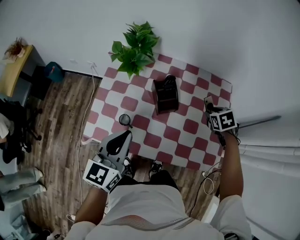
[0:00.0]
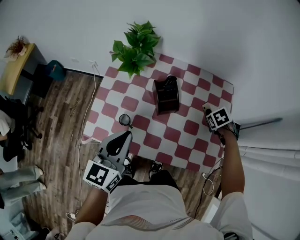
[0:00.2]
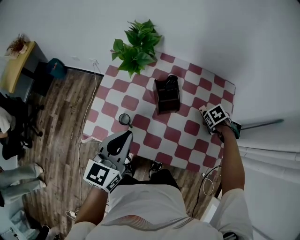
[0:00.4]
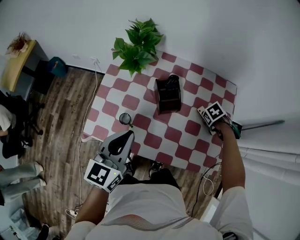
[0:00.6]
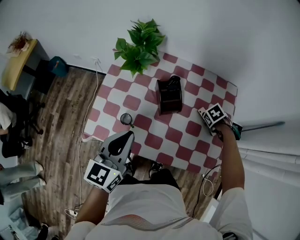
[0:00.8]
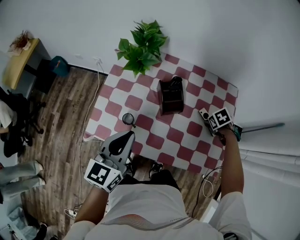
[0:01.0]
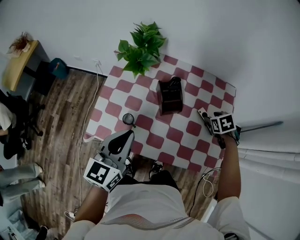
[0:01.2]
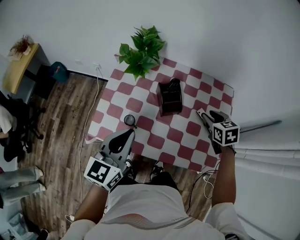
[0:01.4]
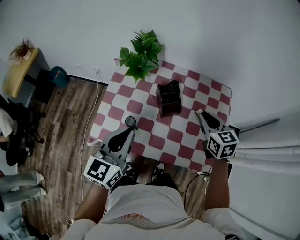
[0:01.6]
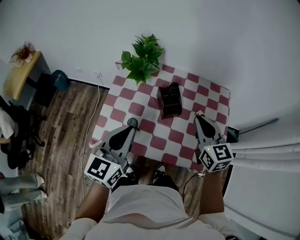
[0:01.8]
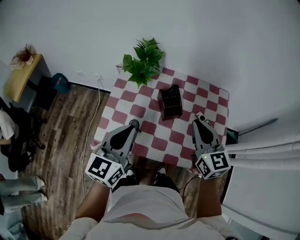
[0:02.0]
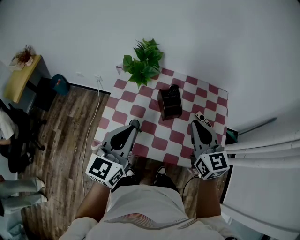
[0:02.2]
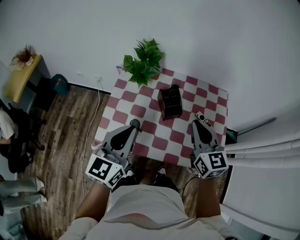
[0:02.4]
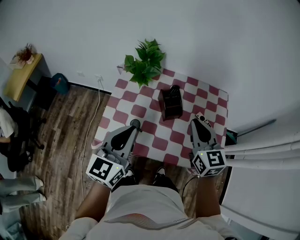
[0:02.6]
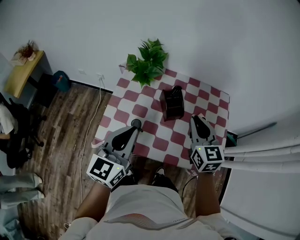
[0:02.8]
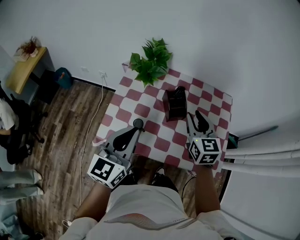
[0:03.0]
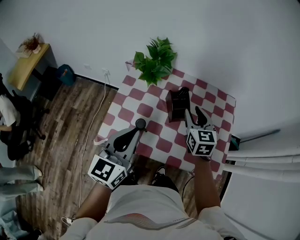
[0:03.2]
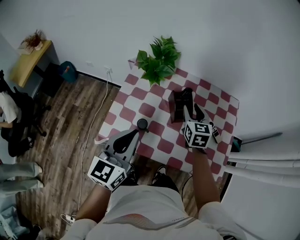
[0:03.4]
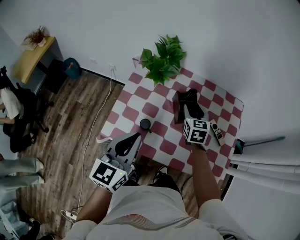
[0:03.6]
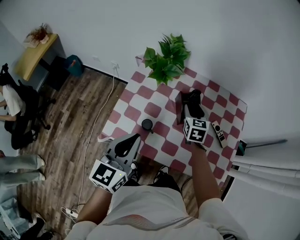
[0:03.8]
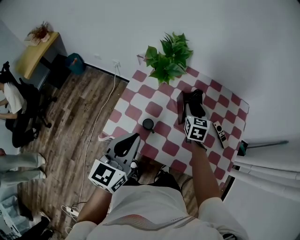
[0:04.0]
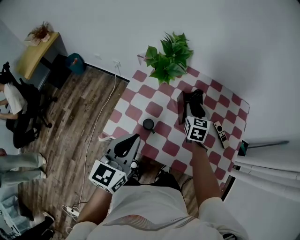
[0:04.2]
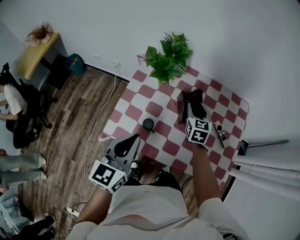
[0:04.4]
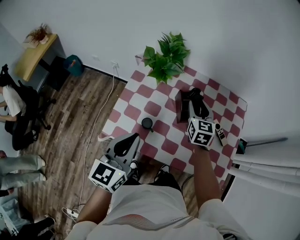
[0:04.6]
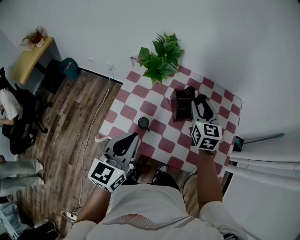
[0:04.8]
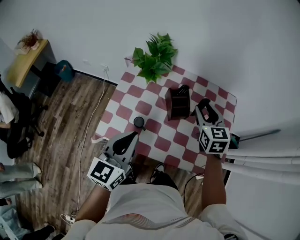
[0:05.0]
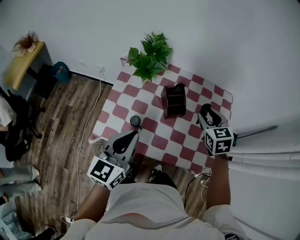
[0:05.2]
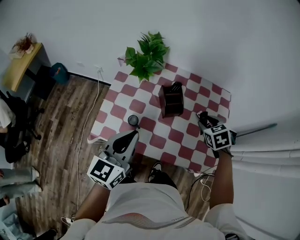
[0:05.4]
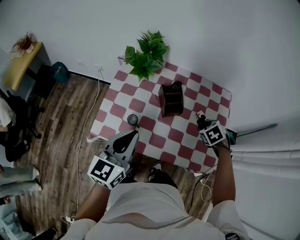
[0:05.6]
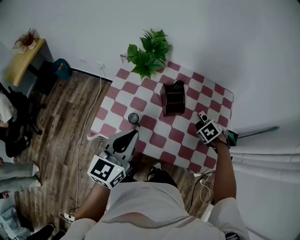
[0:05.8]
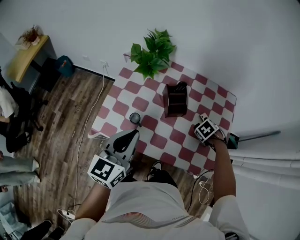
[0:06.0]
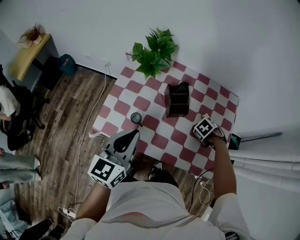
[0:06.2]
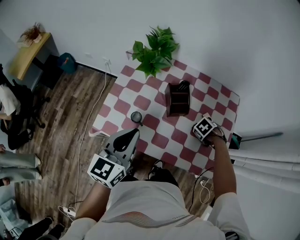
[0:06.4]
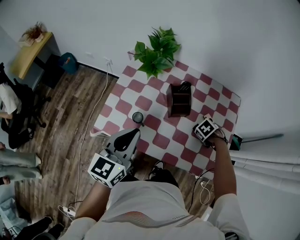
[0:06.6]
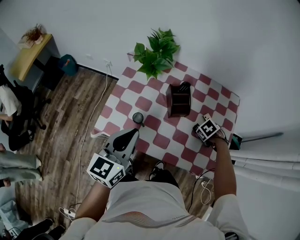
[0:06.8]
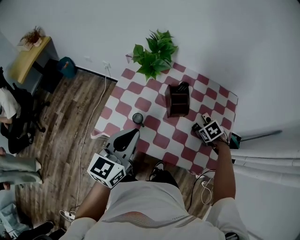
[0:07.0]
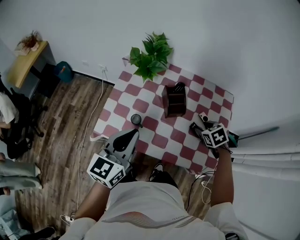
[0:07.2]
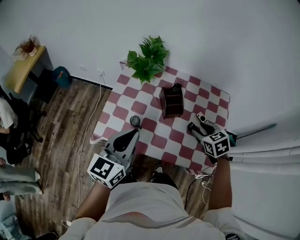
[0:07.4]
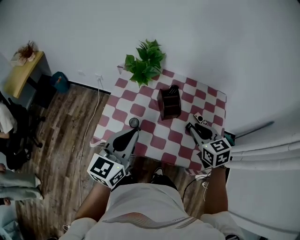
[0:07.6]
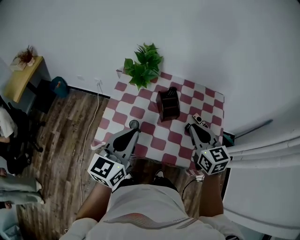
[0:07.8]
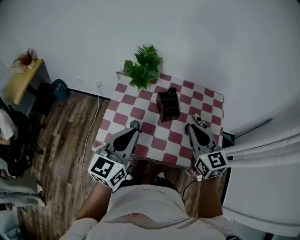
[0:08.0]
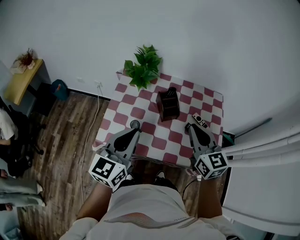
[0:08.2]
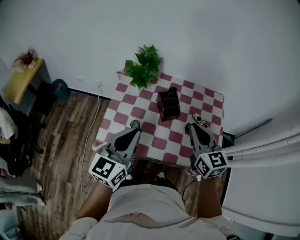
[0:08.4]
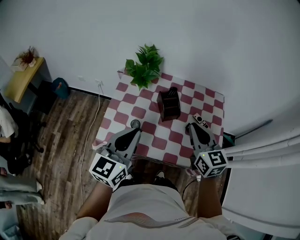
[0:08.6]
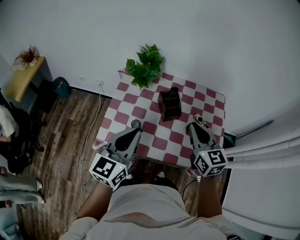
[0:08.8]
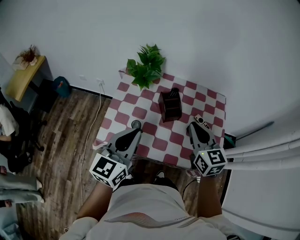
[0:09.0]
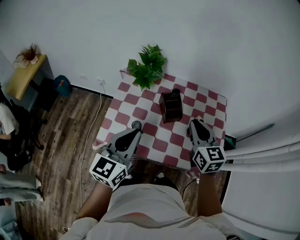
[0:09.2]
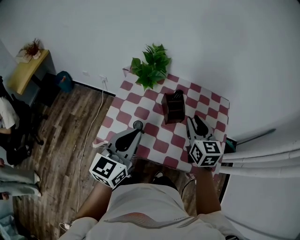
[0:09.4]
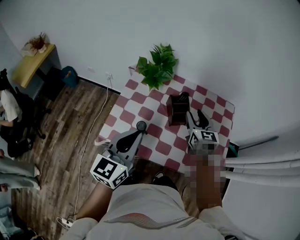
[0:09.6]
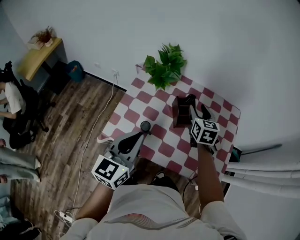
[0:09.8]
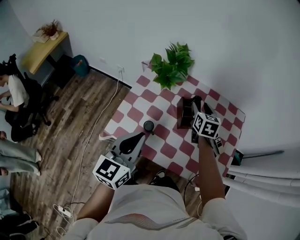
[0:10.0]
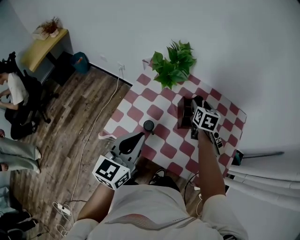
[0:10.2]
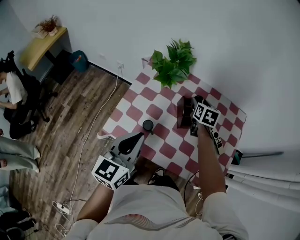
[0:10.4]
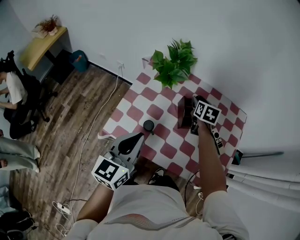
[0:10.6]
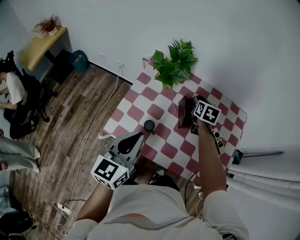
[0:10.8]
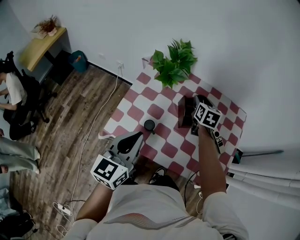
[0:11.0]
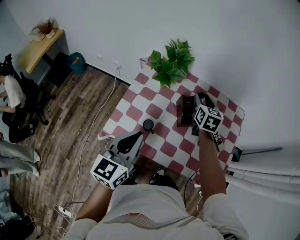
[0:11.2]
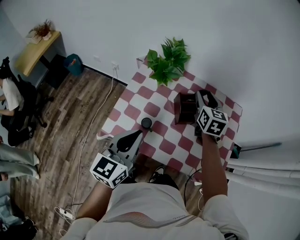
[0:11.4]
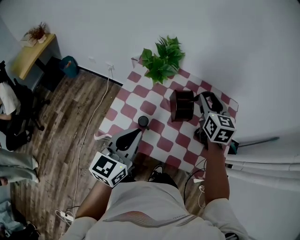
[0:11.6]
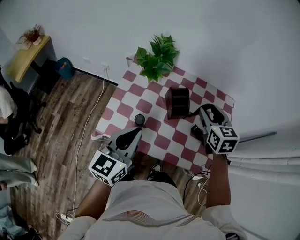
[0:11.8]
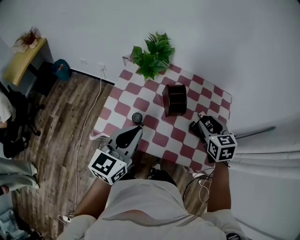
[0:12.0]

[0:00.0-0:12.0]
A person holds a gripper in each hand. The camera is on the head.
0:00.0 to 0:01.6: The right gripper ends up approximately 15 cm from where it was, tilts its fingers roughly 30 degrees upward, and closes.
0:01.6 to 0:03.0: The right gripper is displaced to the left by about 10 cm.
0:03.0 to 0:04.4: The right gripper shifts approximately 15 cm downward and forward. Meanwhile the left gripper moves some 5 cm.
0:04.4 to 0:06.0: The right gripper moves about 25 cm, and points its fingers about 60 degrees further downward.
0:06.0 to 0:07.6: The right gripper travels upward by about 20 cm, and angles its fingers upward, by approximately 50 degrees.
0:07.6 to 0:09.0: The right gripper goes roughly 5 cm upward, and turns by roughly 20 degrees.
0:09.0 to 0:10.4: The left gripper moves some 5 cm. Meanwhile the right gripper moves forward and downward, about 30 cm, rotates approximately 30 degrees, and opens its fingers.
0:10.4 to 0:12.0: The right gripper shifts roughly 20 cm backward, to the right and upward.

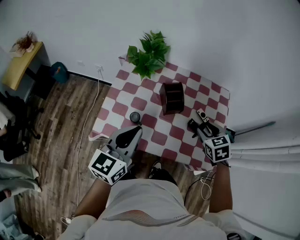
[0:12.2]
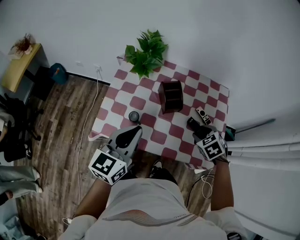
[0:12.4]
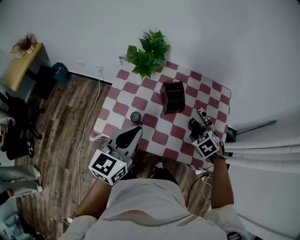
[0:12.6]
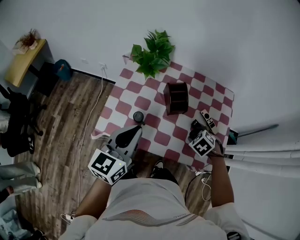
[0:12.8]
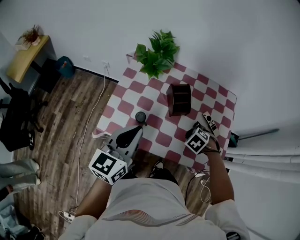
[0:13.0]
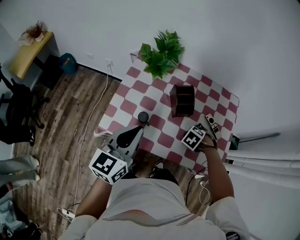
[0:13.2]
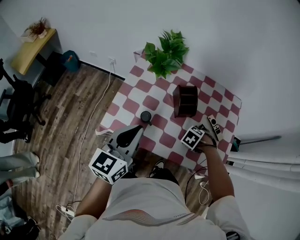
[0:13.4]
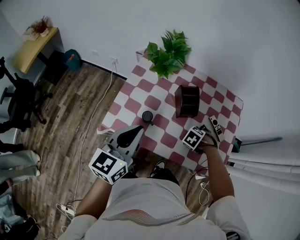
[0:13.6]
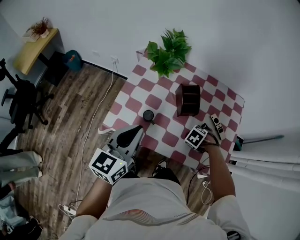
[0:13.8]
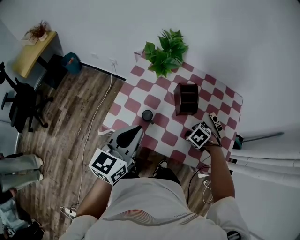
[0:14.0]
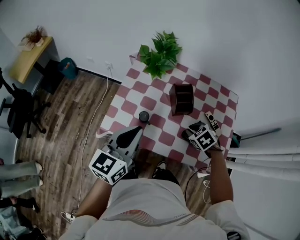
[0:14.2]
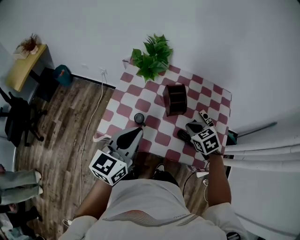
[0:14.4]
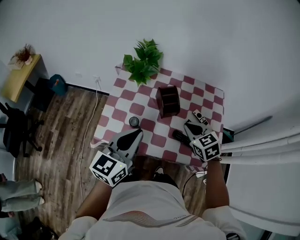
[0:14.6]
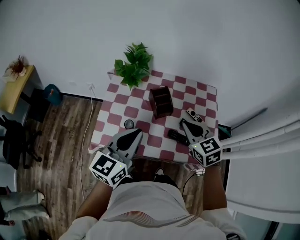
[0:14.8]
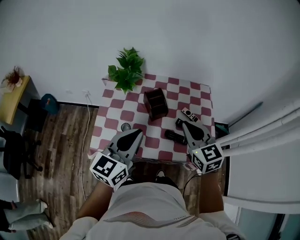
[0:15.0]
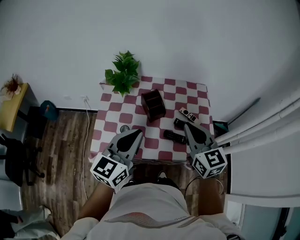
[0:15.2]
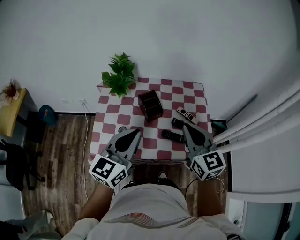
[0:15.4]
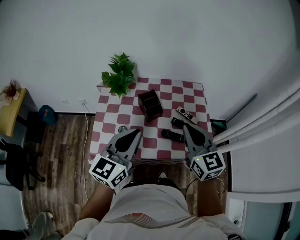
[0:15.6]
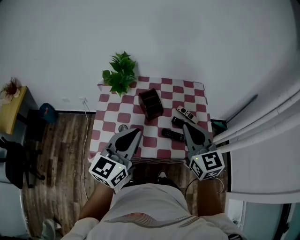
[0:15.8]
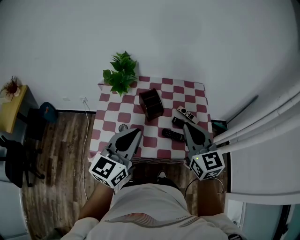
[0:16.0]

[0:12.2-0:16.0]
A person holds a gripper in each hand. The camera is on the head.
0:12.2 to 0:13.4: The right gripper heads downward, covering some 15 cm, and tips its fingers downward by roughly 40 degrees.
0:13.4 to 0:14.8: The right gripper heads upward, covering about 25 cm, points its fingers approximately 60 degrees further upward, and closes. Meanwhile the left gripper ends up about 10 cm from where it was.
0:14.8 to 0:16.0: The right gripper heads upward and backward, covering approximately 10 cm, and turns by approximately 20 degrees.

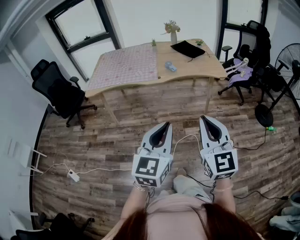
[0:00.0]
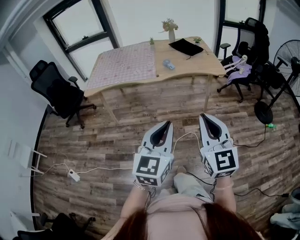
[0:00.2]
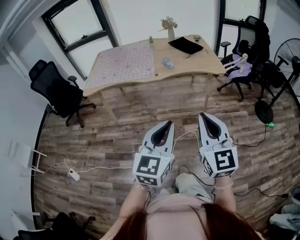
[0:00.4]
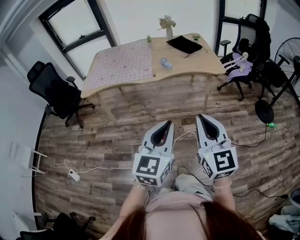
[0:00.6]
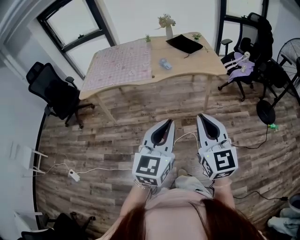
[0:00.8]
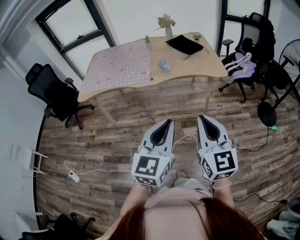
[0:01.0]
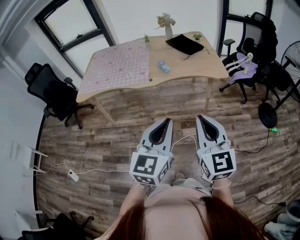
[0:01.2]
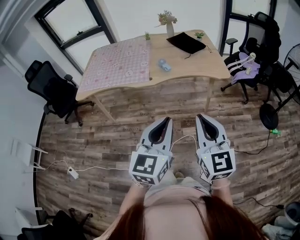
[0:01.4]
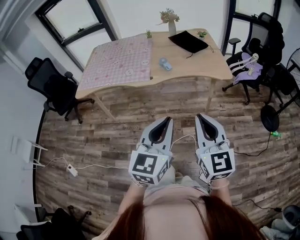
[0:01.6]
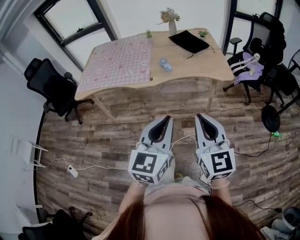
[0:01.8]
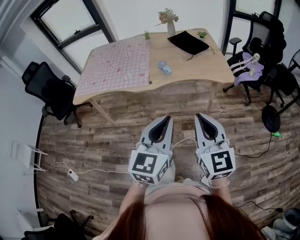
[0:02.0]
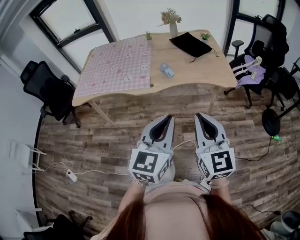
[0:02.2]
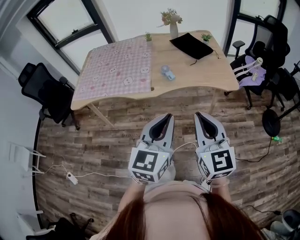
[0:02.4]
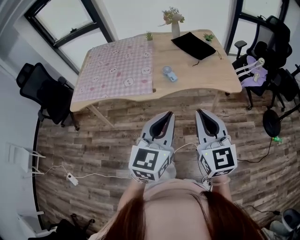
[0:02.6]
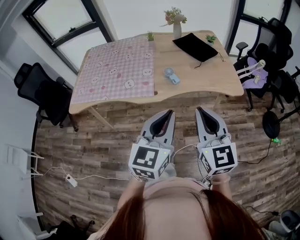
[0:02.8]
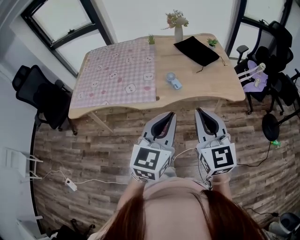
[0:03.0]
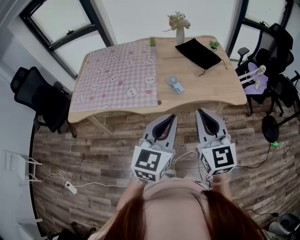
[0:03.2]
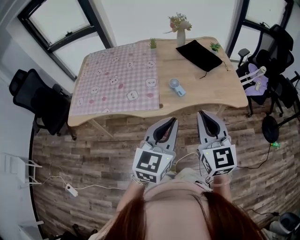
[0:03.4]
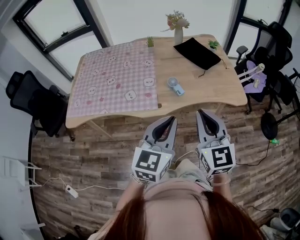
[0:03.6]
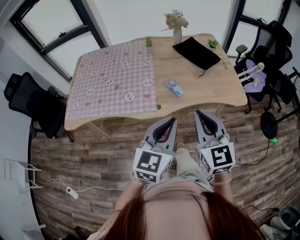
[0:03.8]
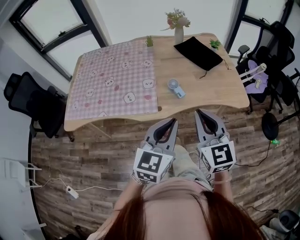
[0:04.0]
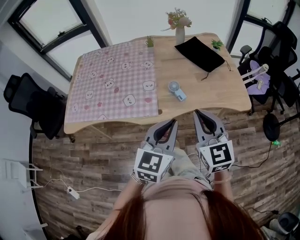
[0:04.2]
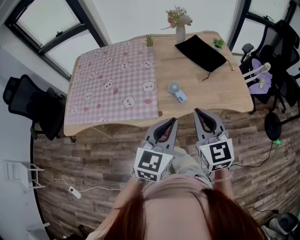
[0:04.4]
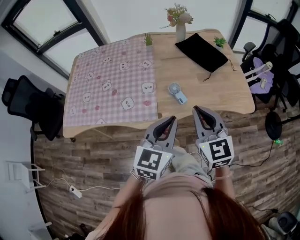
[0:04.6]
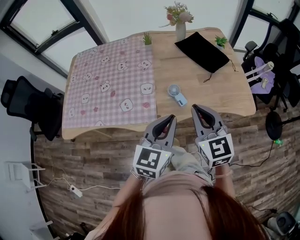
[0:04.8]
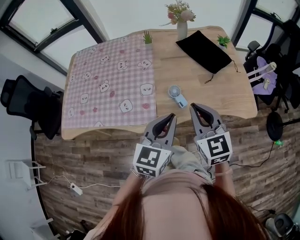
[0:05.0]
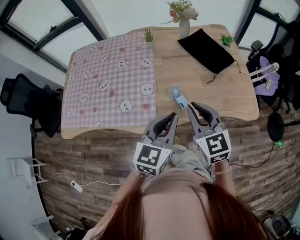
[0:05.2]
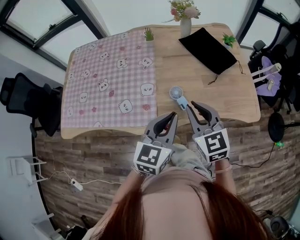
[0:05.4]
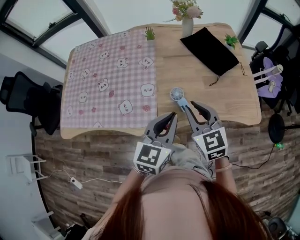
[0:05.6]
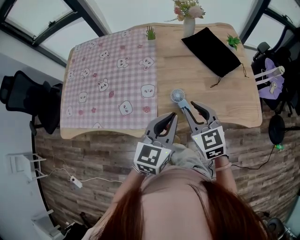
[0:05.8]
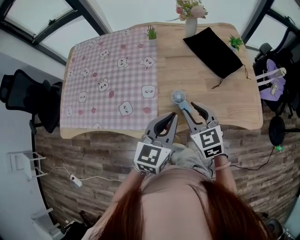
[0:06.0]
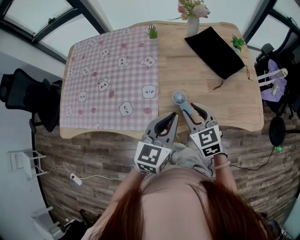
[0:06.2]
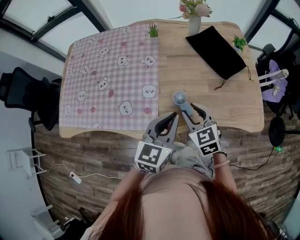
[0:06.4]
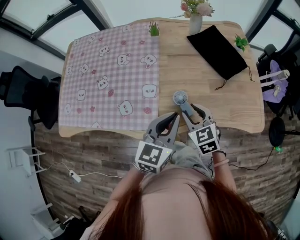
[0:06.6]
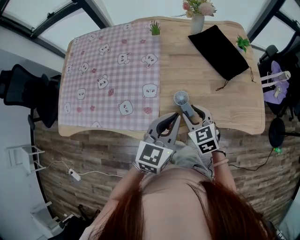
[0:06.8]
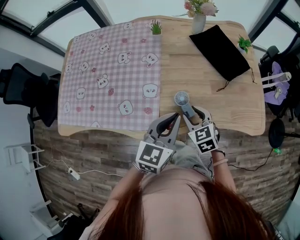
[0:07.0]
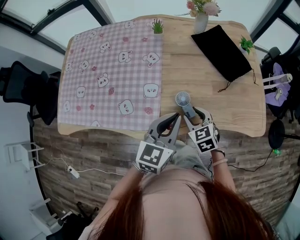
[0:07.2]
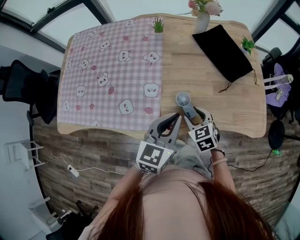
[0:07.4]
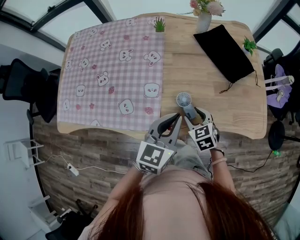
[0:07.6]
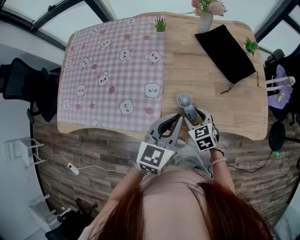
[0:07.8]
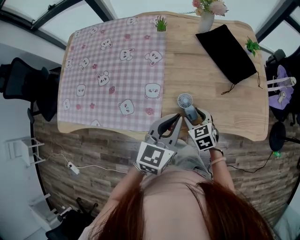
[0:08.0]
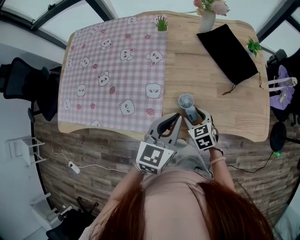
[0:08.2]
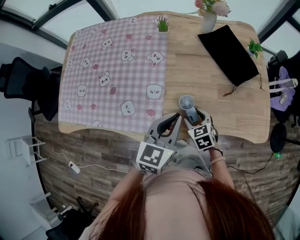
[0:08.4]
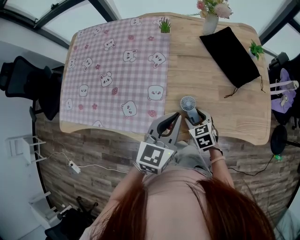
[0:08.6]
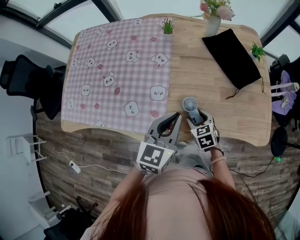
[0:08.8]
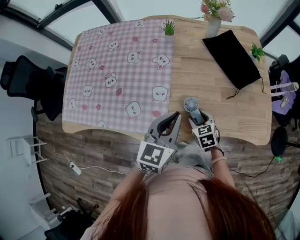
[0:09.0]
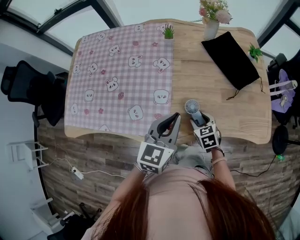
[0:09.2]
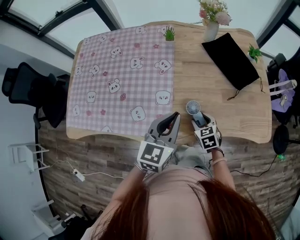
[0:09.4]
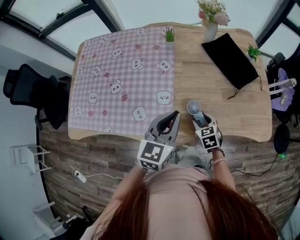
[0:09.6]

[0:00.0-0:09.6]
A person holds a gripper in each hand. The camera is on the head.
0:00.0 to 0:01.6: The grippers both shift forward and to the right by about 20 cm.
0:01.6 to 0:03.2: The left gripper moves forward, some 25 cm; the right gripper travels forward and to the left by approximately 30 cm.
0:03.2 to 0:04.8: The right gripper moves forward, some 20 cm. Meanwhile the left gripper goes about 20 cm forward and downward.
0:04.8 to 0:06.4: The left gripper heads forward and downward, covering some 15 cm, while the right gripper travels downward and forward by roughly 20 cm, swivels about 20 degrees, and opens up.
0:06.4 to 0:08.0: The right gripper moves downward, about 15 cm.
0:08.0 to 0:09.6: The left gripper travels to the left by roughly 5 cm.
